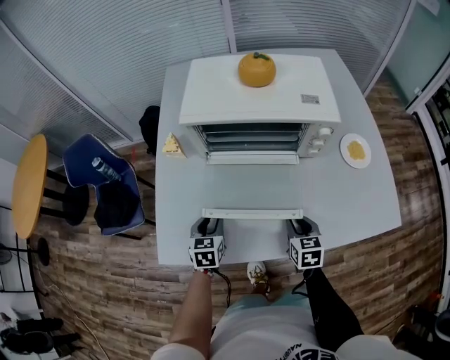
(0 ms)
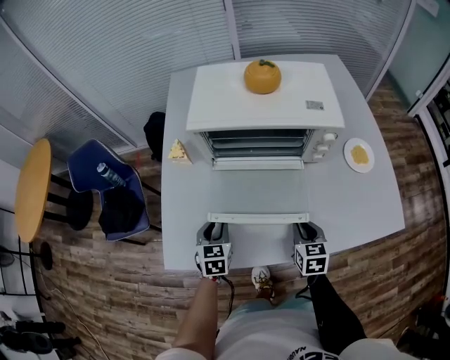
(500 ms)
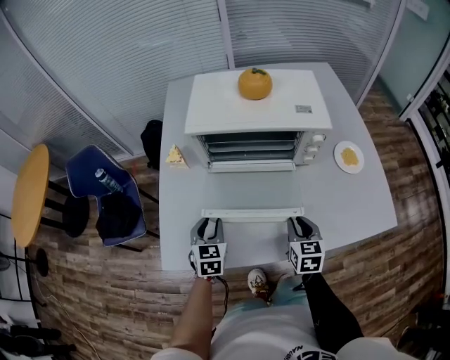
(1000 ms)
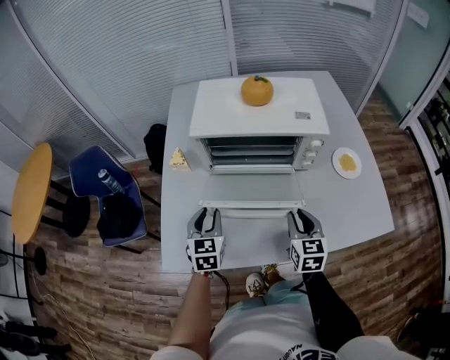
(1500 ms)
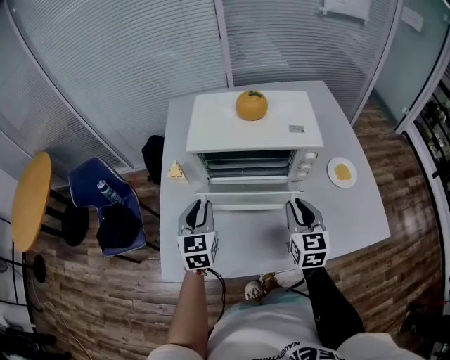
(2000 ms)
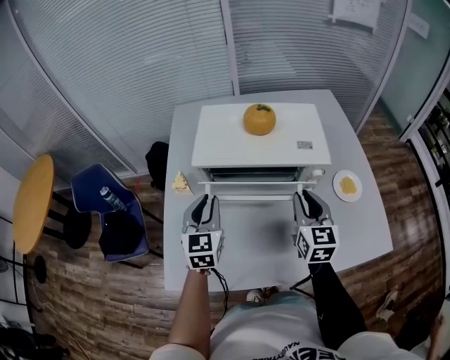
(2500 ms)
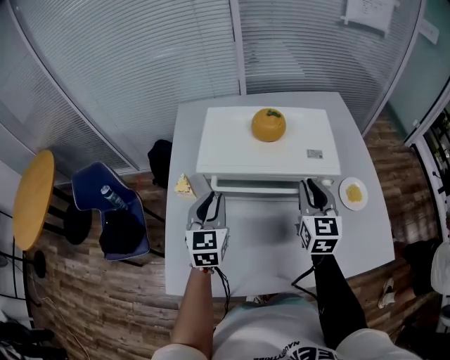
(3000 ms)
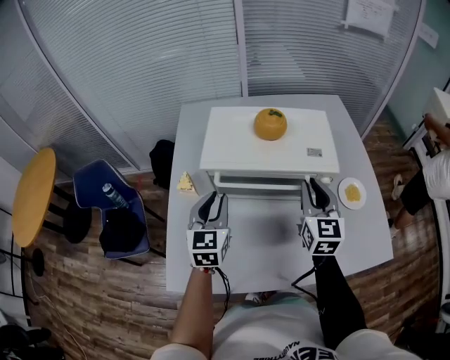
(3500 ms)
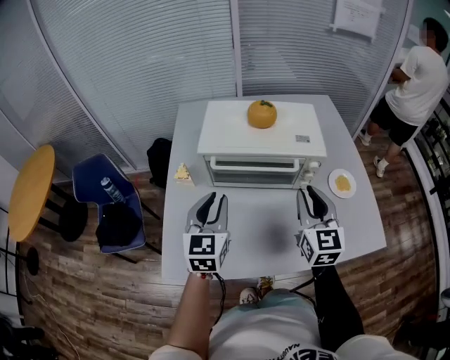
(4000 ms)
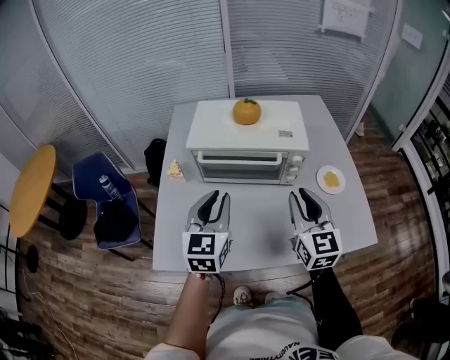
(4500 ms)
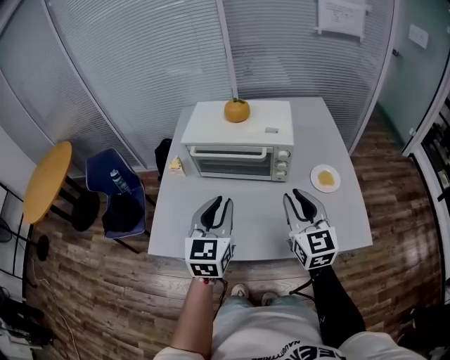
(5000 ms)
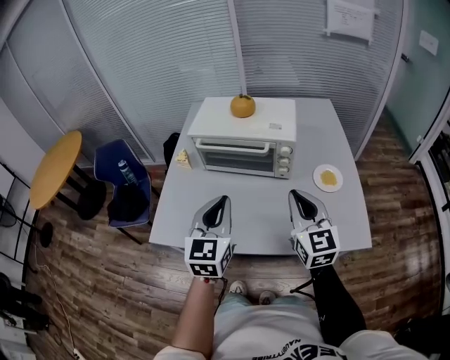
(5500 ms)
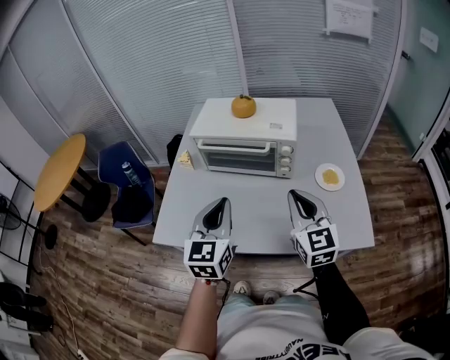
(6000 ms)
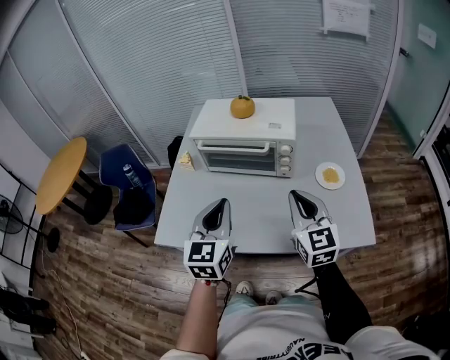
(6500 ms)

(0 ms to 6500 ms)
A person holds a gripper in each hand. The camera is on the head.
0 ms - 2000 ms: The right gripper shifts some 20 cm upward, and rotates roughly 30 degrees. Meanwhile the left gripper heads upward and forward, covering about 20 cm, and swivels some 20 degrees.
2000 ms - 4500 ms: The right gripper is displaced upward by some 10 cm, and travels forward and back again, roughly 10 cm each way; the left gripper moves upward and to the right, some 15 cm.
4500 ms - 6500 ms: The left gripper goes about 15 cm backward and to the right, while the right gripper heads backward and to the right, covering approximately 10 cm.

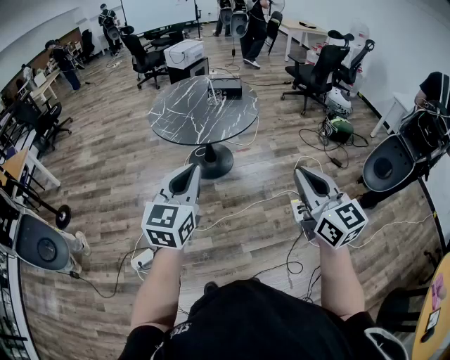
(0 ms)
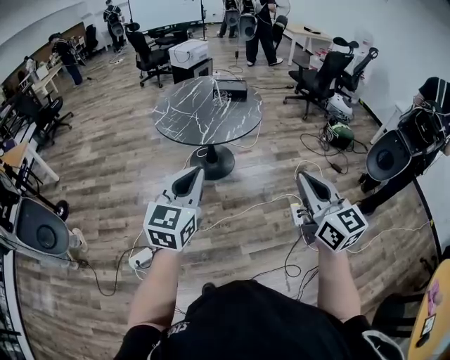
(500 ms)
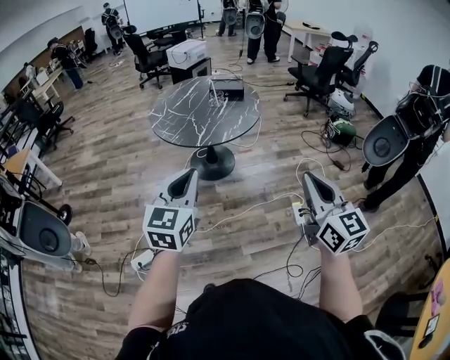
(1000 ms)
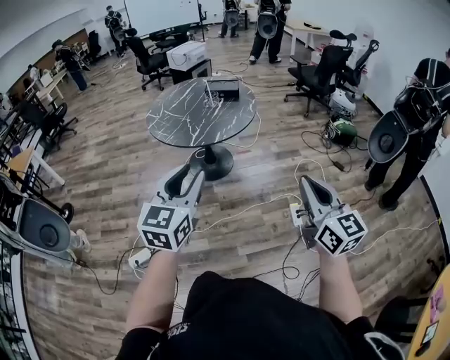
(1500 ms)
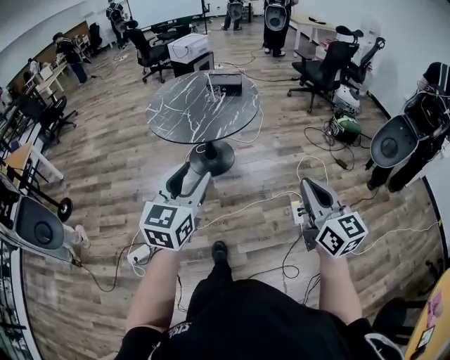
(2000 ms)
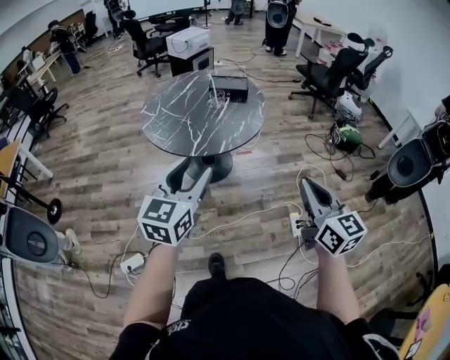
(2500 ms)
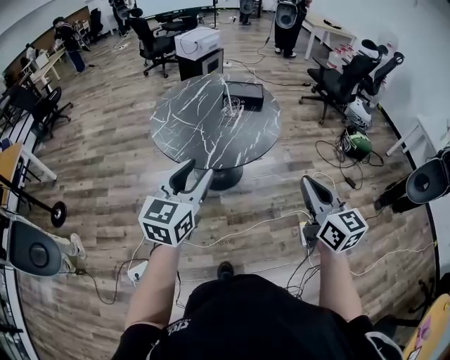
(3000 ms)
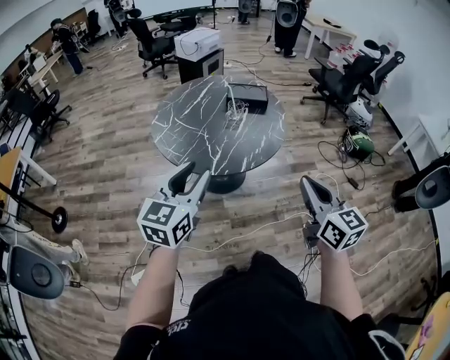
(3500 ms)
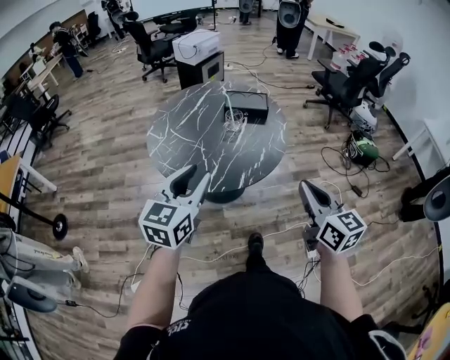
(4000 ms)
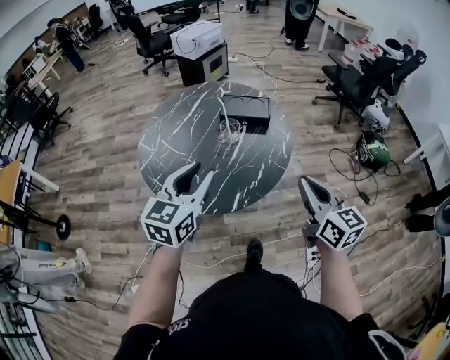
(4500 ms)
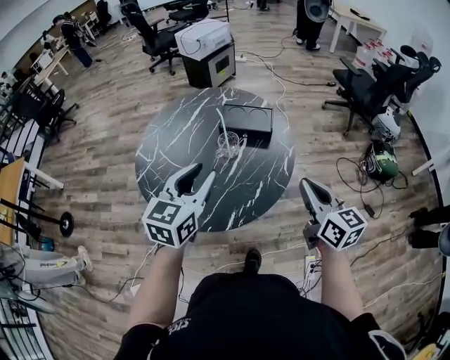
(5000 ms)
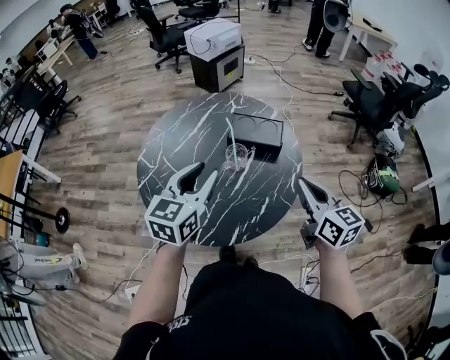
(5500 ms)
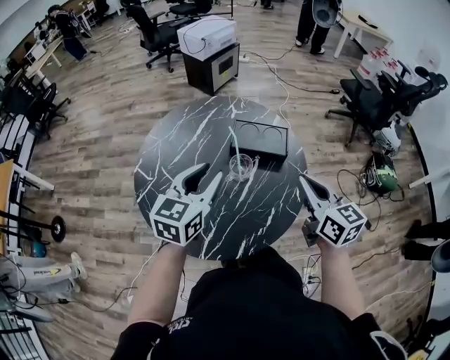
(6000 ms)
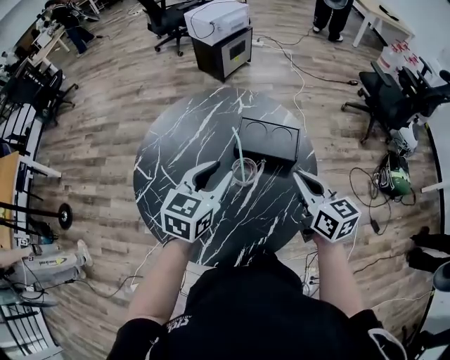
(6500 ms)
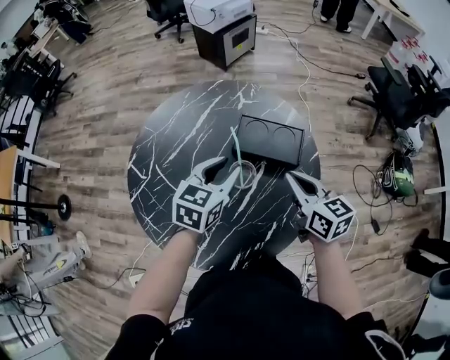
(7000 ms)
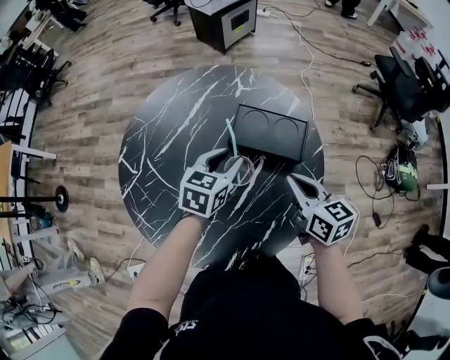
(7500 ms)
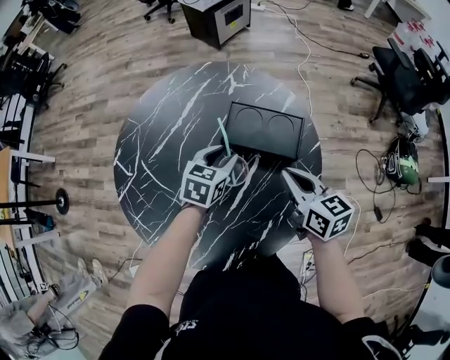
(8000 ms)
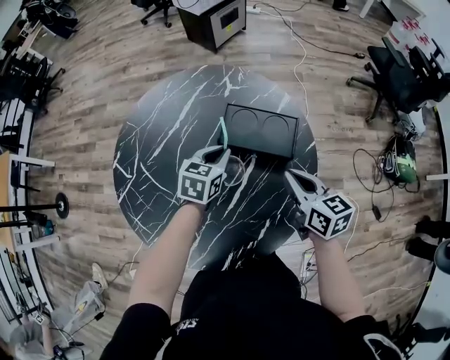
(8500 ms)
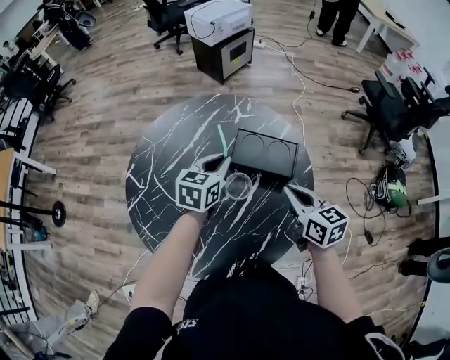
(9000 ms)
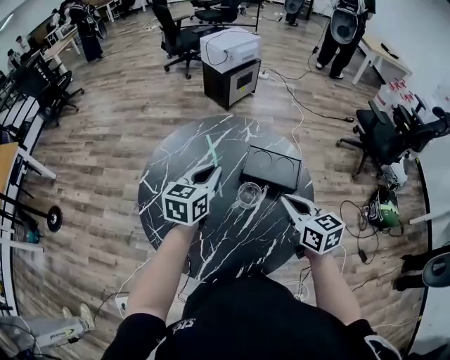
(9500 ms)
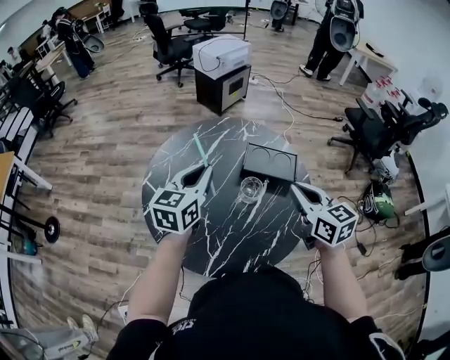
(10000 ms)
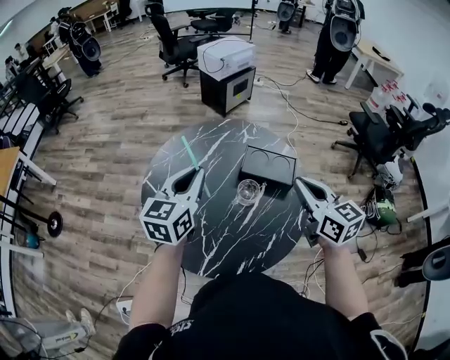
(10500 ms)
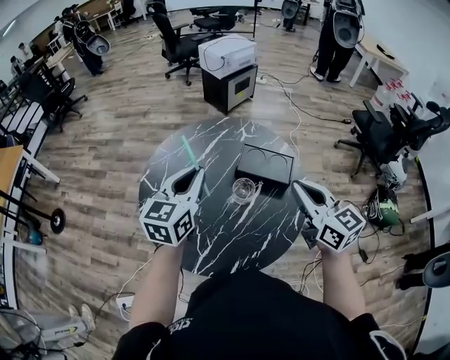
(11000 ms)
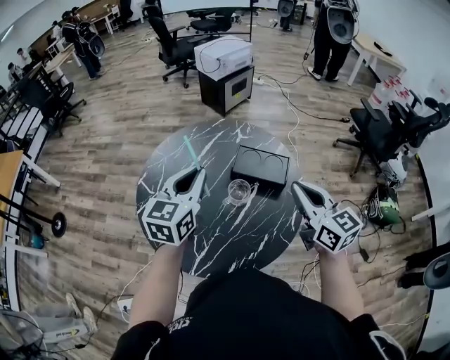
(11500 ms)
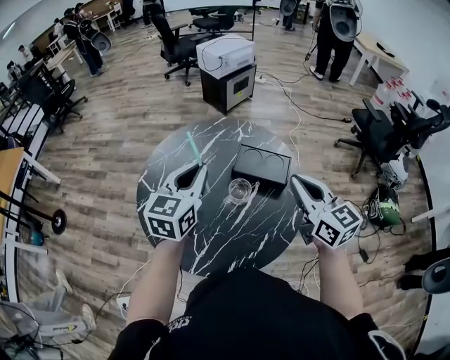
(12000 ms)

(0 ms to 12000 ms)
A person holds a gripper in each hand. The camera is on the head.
0 ms - 2000 ms: The left gripper shifts about 5 cm to the right, and opens; the right gripper goes about 10 cm to the right and downward.
2000 ms - 4000 ms: Both grippers travel together forward, some 35 cm.
4000 ms - 6000 ms: The two grippers go some 35 cm forward.
6000 ms - 8000 ms: The two grippers go roughly 25 cm downward and forward. The left gripper changes its angle by about 30 degrees.
8000 ms - 10000 ms: The right gripper shifts about 20 cm upward, backward and to the left. Meanwhile the left gripper heads upward and to the left, covering roughly 30 cm, turns by roughly 30 degrees, and closes its fingers.
10000 ms - 12000 ms: Both grippers travel together to the right, some 5 cm.

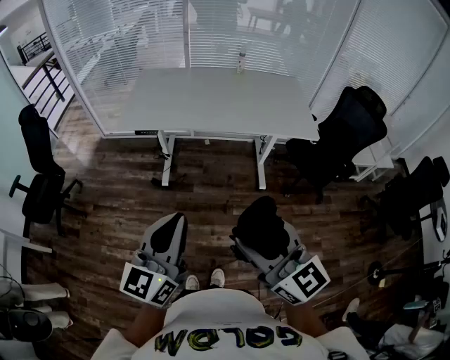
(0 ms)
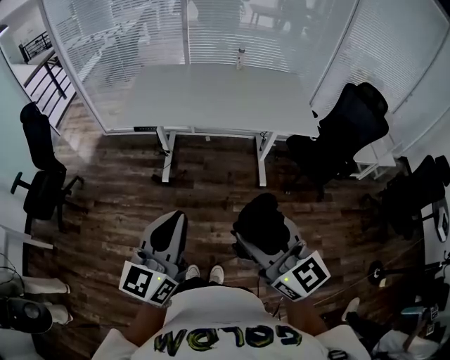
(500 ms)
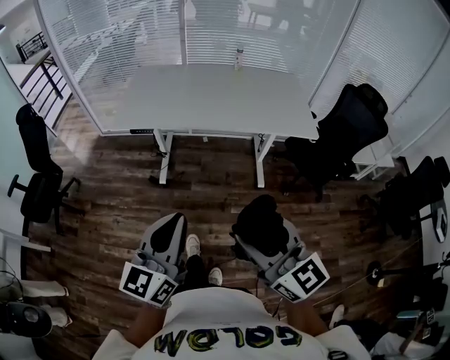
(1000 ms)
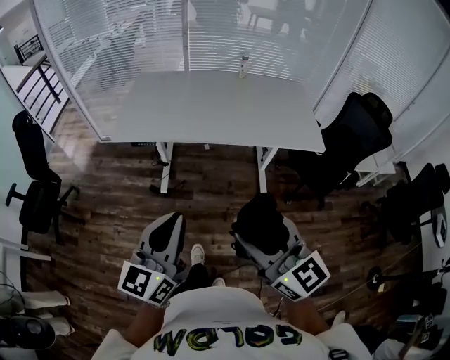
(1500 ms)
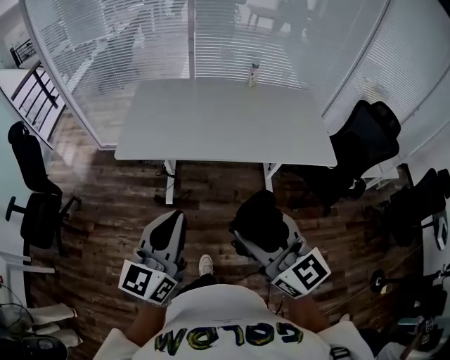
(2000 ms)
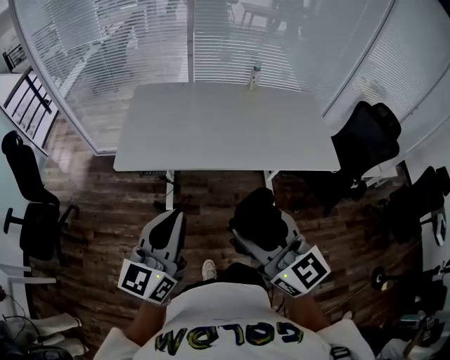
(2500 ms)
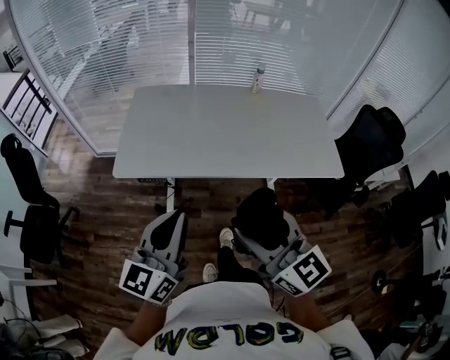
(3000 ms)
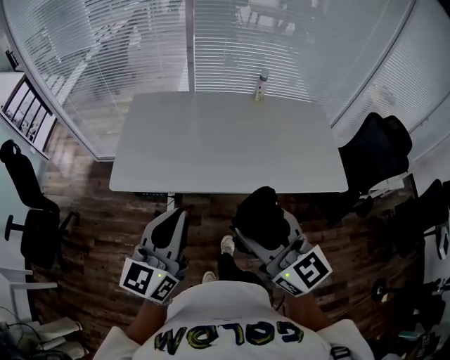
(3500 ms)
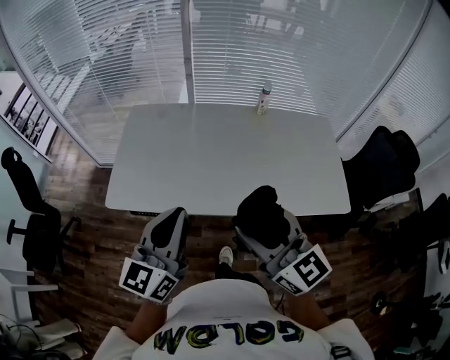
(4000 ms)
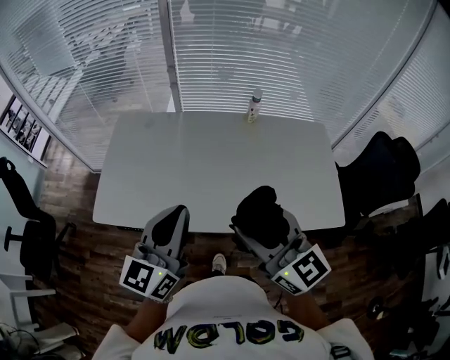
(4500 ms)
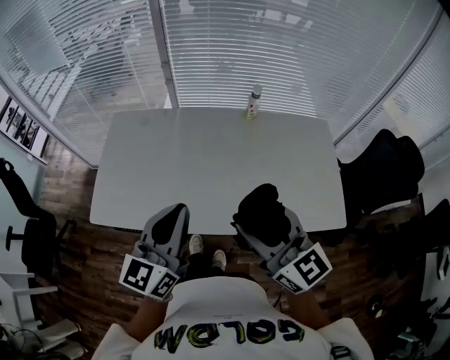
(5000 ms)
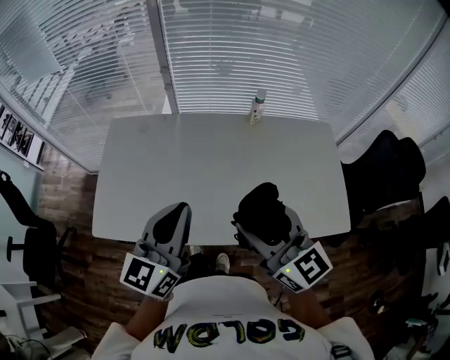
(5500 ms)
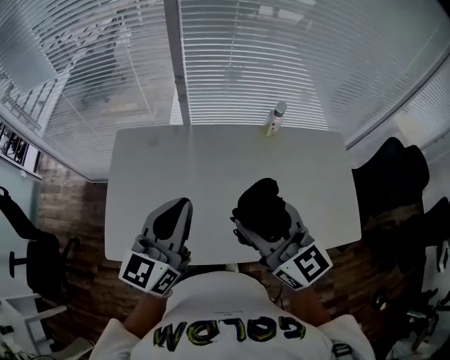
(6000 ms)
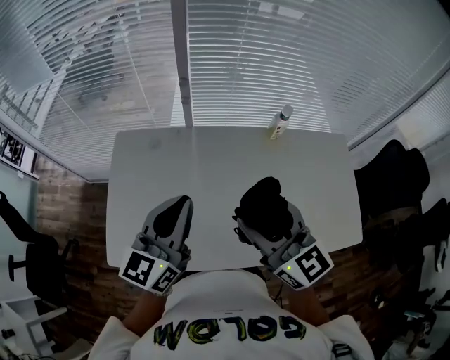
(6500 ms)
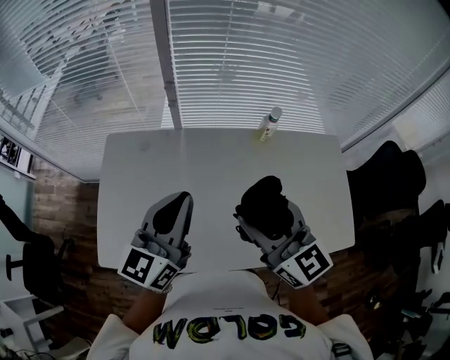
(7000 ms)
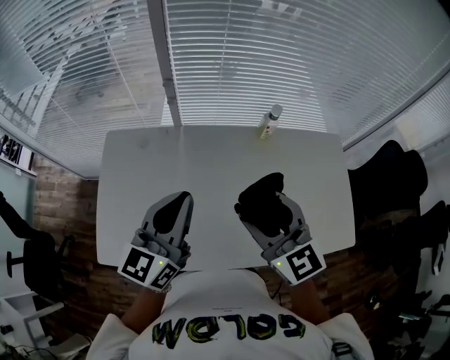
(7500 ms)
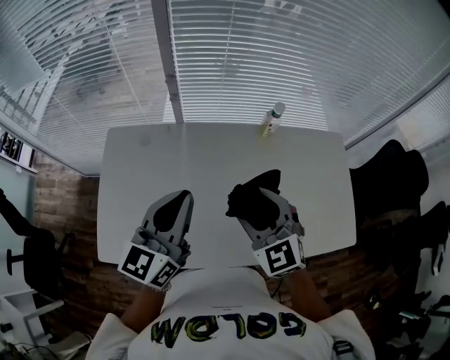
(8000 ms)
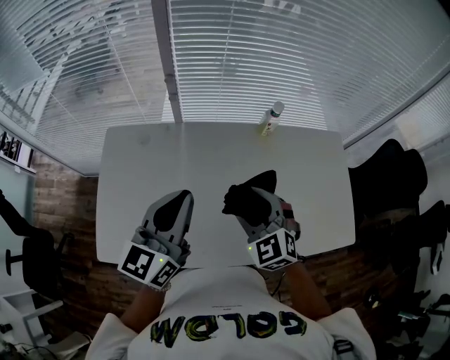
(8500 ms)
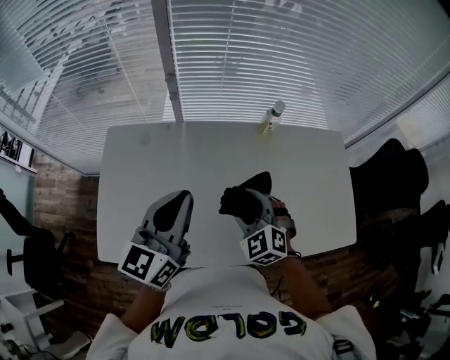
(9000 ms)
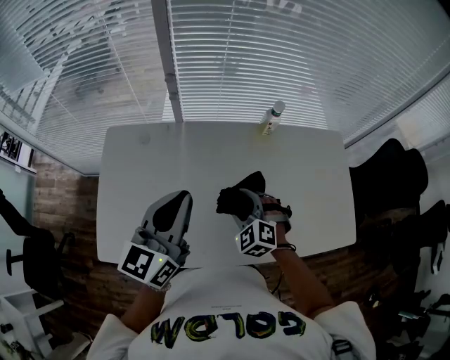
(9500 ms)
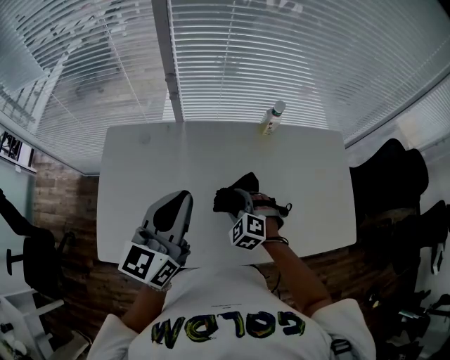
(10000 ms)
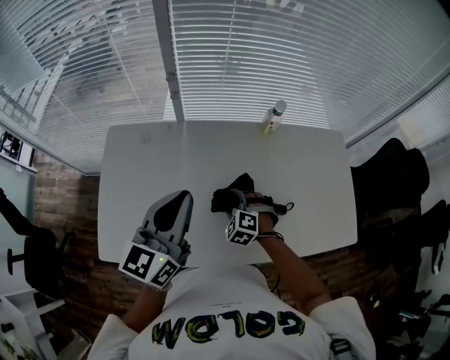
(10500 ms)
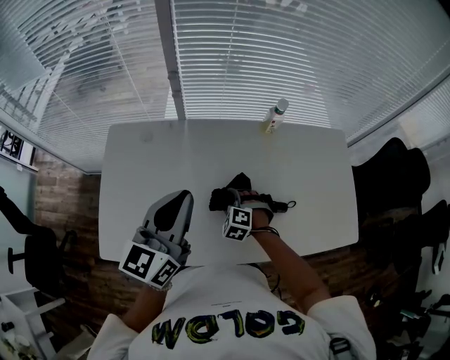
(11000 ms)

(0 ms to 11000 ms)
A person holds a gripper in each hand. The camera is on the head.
0 ms - 2000 ms: Both grippers move forward, roughly 20 cm.
2000 ms - 3500 ms: Both grippers travel together forward, about 20 cm.
3500 ms - 5500 ms: The grippers both shift forward and to the right by about 25 cm.
5500 ms - 7500 ms: Both grippers travel together forward, approximately 15 cm.
7500 ms - 9000 ms: The right gripper heads downward, covering approximately 15 cm, and rotates roughly 40 degrees.
9000 ms - 11000 ms: The right gripper heads downward, covering roughly 20 cm, and changes its angle by some 30 degrees.
